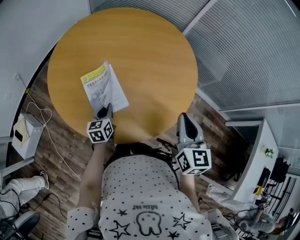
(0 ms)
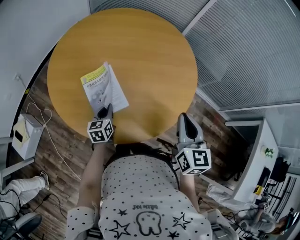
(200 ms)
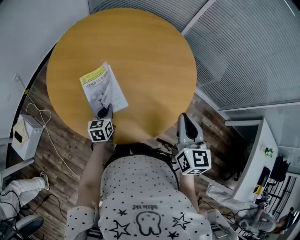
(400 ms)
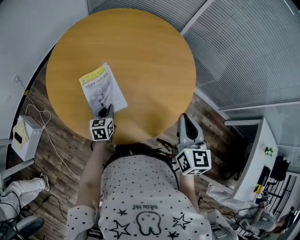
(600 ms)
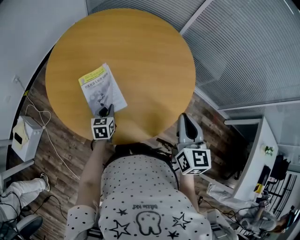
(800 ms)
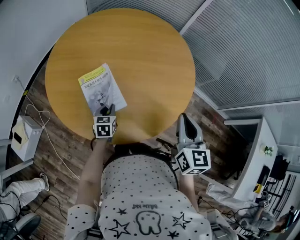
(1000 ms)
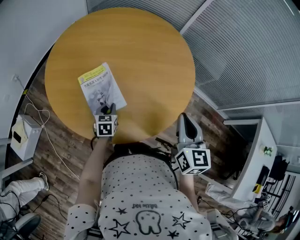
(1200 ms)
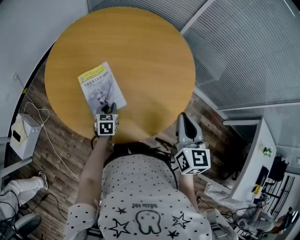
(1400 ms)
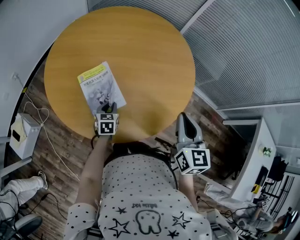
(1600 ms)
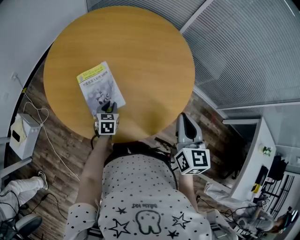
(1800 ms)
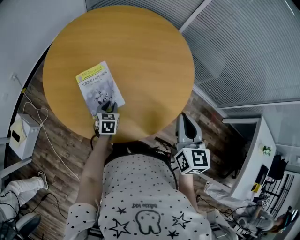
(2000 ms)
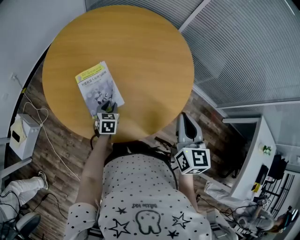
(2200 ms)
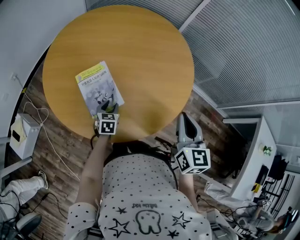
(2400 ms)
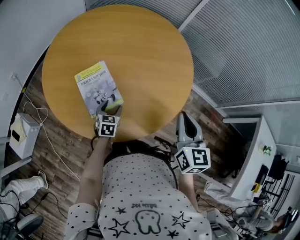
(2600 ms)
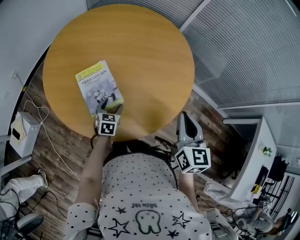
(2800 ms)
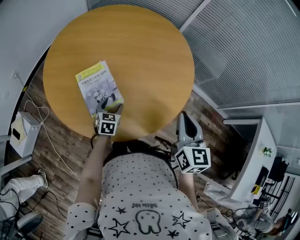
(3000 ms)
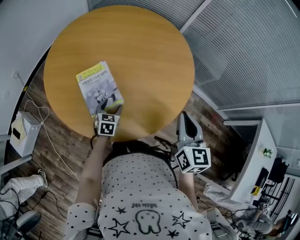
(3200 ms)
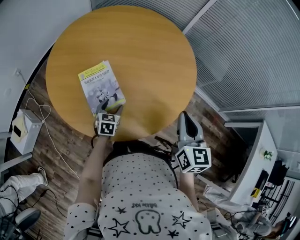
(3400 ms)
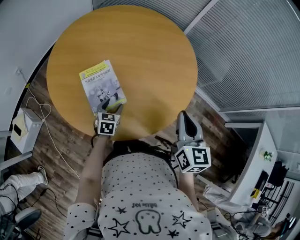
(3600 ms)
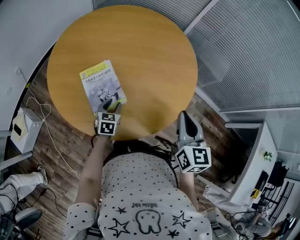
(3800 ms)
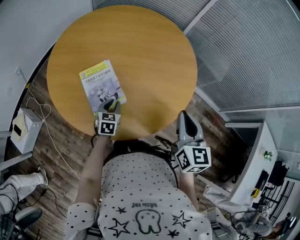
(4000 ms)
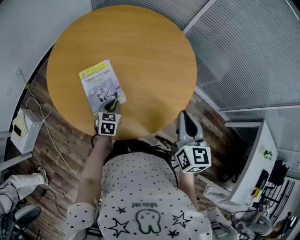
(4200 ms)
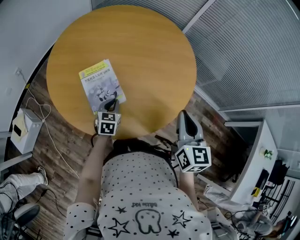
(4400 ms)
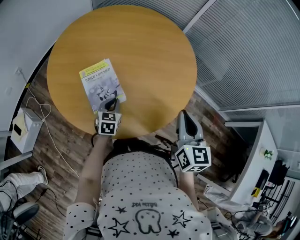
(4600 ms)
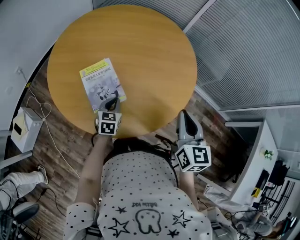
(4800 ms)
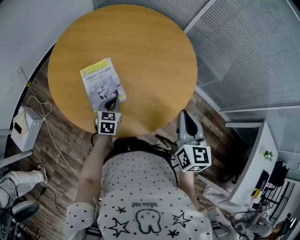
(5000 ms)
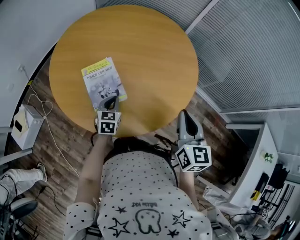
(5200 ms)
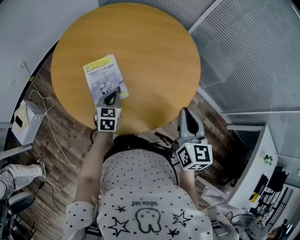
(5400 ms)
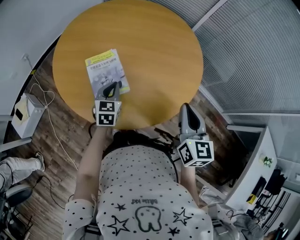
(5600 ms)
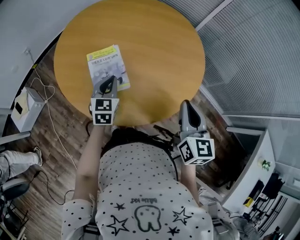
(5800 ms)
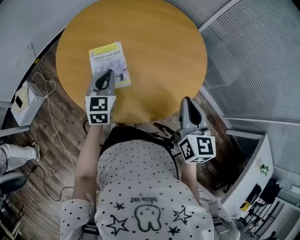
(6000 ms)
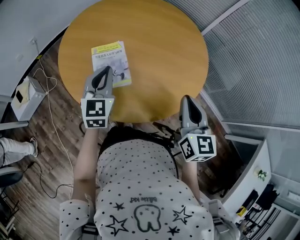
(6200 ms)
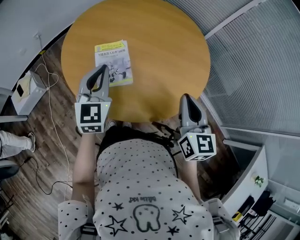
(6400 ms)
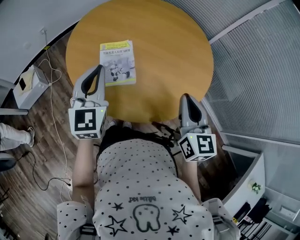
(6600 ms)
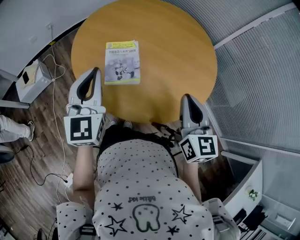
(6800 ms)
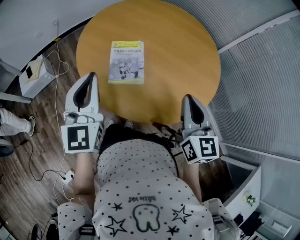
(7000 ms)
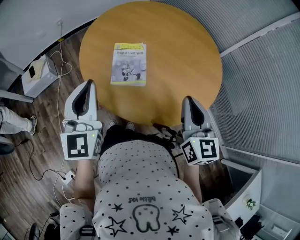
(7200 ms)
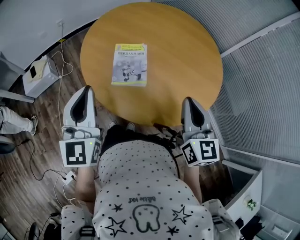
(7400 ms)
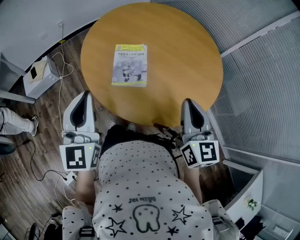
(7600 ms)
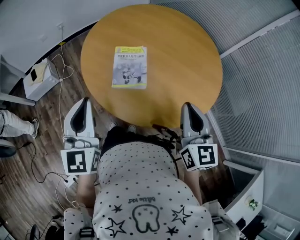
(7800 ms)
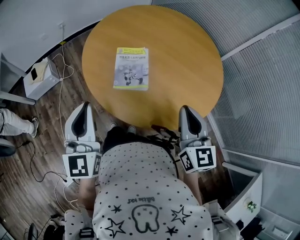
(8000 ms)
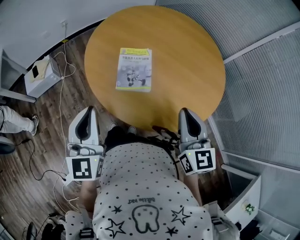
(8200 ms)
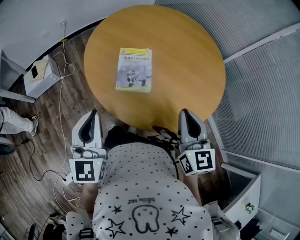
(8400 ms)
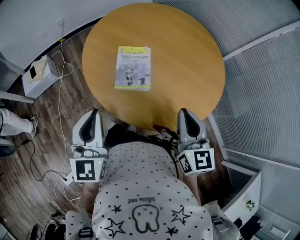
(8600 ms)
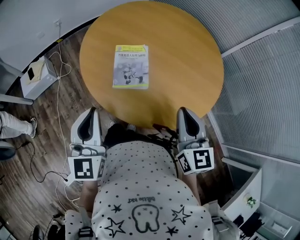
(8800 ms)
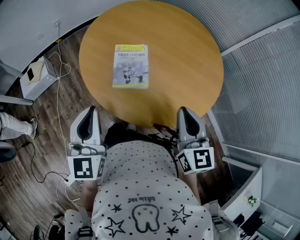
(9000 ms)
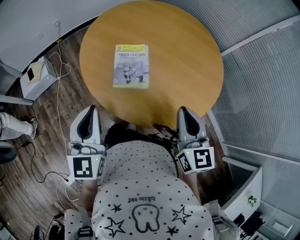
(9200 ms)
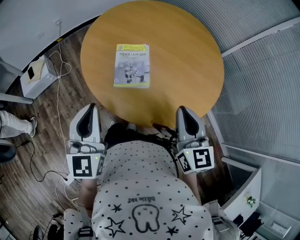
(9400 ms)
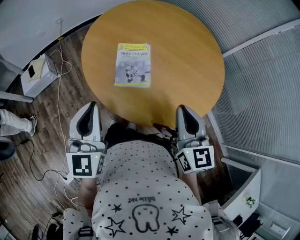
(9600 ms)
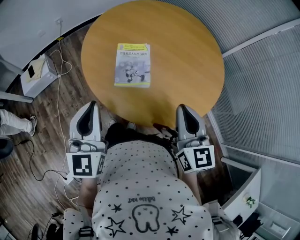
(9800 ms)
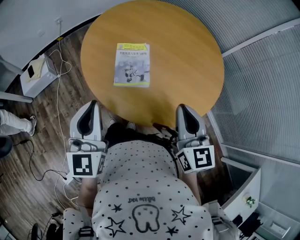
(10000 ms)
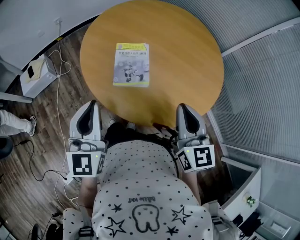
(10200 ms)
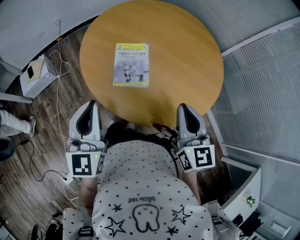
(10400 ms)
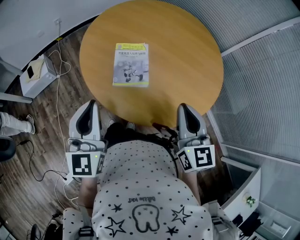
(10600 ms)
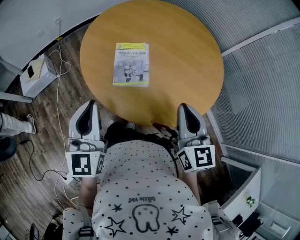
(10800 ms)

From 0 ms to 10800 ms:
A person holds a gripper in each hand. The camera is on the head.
From 0 ms to 1600 ms: The left gripper ends up roughly 5 cm from where it was, and rotates approximately 20 degrees.
From 1600 ms to 3000 ms: The left gripper opens its fingers.
From 3000 ms to 4600 ms: The left gripper closes.
From 4600 ms to 6200 ms: The left gripper heads upward, covering approximately 20 cm, and swivels about 30 degrees.
From 6200 ms to 7800 ms: The left gripper moves backward, to the left and upward, some 20 cm, and turns by approximately 20 degrees, while the right gripper is displaced to the left by approximately 5 cm.
From 7800 ms to 10800 ms: There are only small adjustments of the grippers.

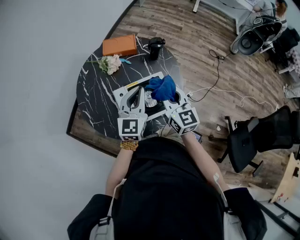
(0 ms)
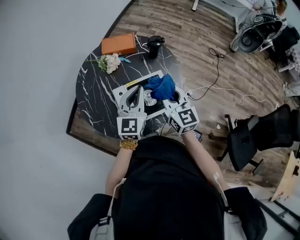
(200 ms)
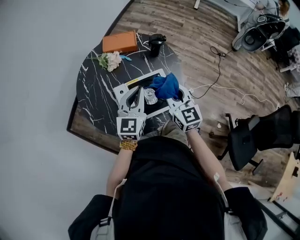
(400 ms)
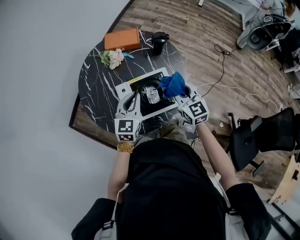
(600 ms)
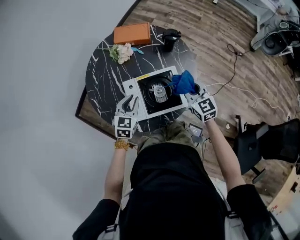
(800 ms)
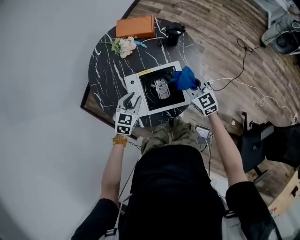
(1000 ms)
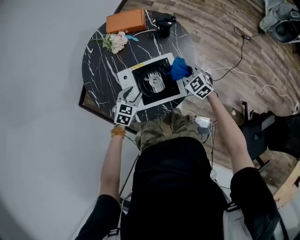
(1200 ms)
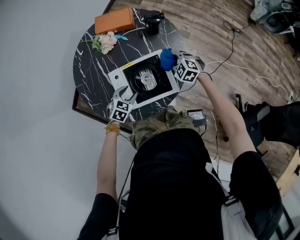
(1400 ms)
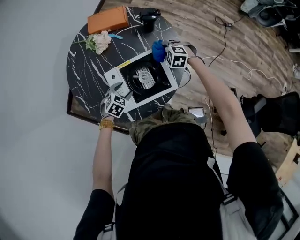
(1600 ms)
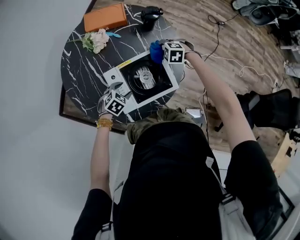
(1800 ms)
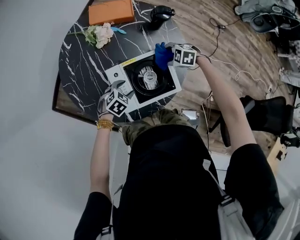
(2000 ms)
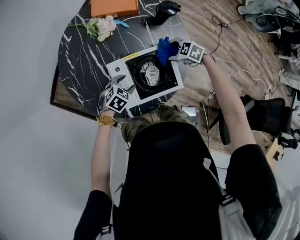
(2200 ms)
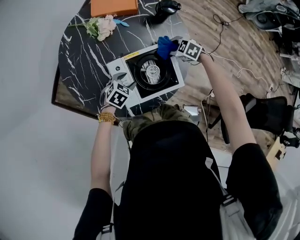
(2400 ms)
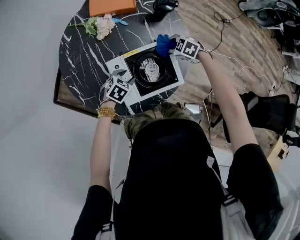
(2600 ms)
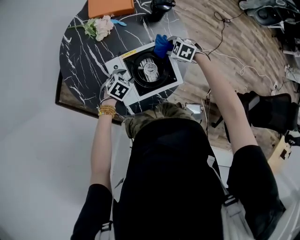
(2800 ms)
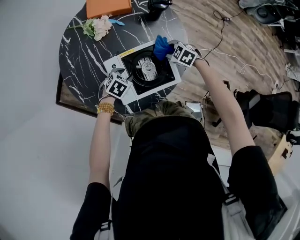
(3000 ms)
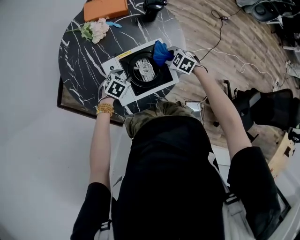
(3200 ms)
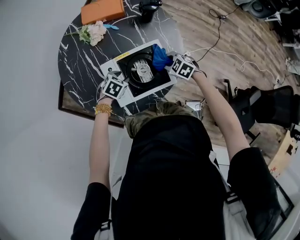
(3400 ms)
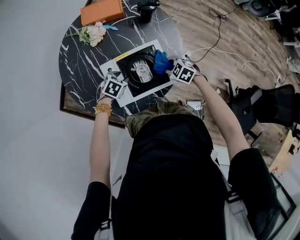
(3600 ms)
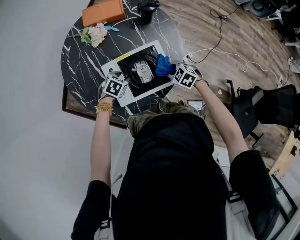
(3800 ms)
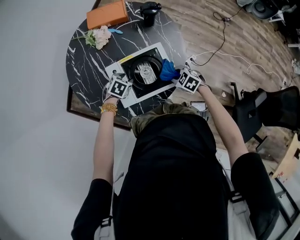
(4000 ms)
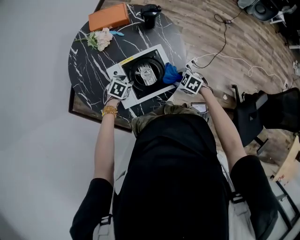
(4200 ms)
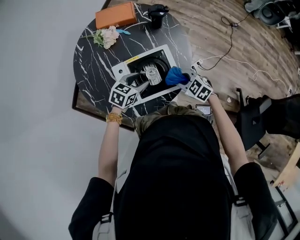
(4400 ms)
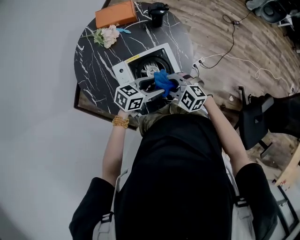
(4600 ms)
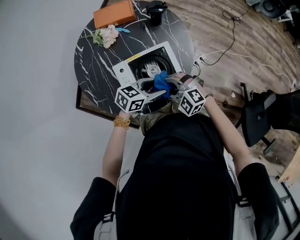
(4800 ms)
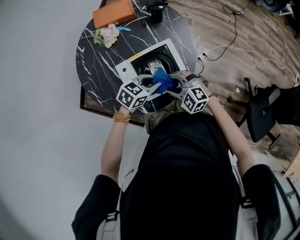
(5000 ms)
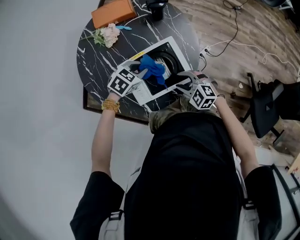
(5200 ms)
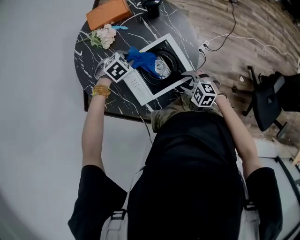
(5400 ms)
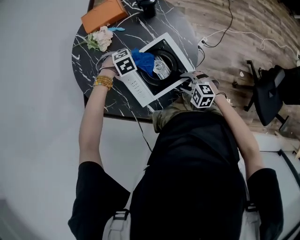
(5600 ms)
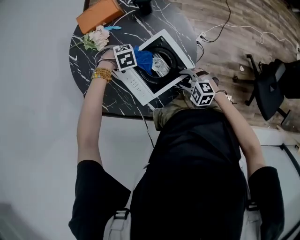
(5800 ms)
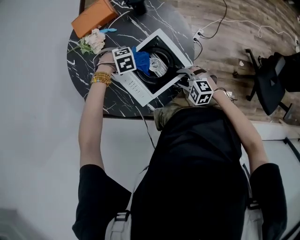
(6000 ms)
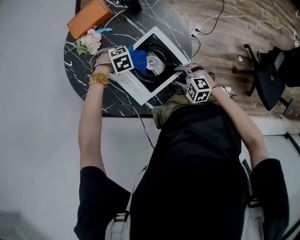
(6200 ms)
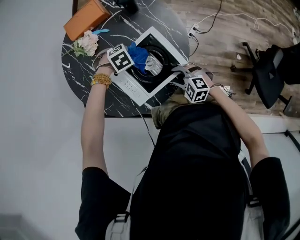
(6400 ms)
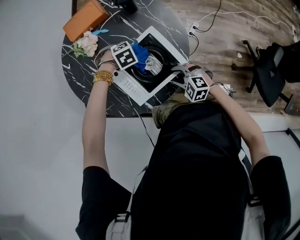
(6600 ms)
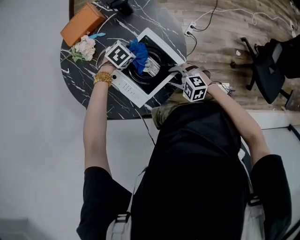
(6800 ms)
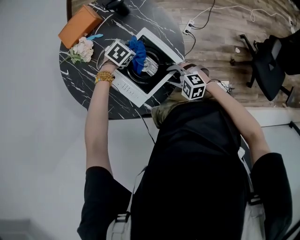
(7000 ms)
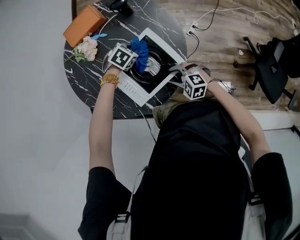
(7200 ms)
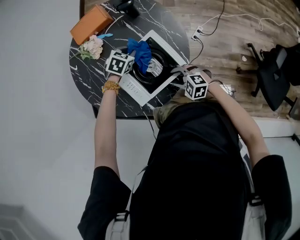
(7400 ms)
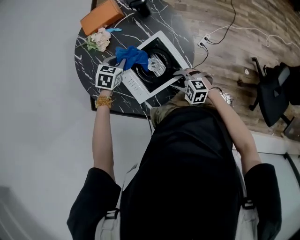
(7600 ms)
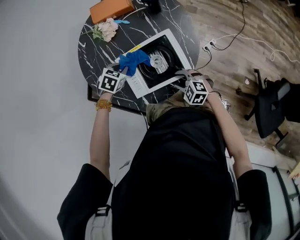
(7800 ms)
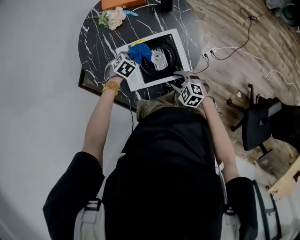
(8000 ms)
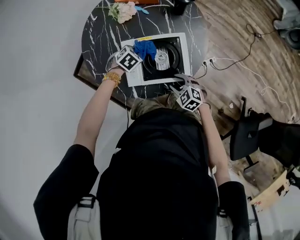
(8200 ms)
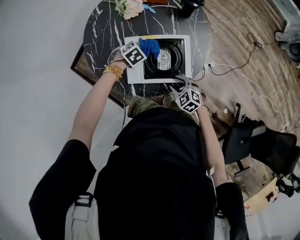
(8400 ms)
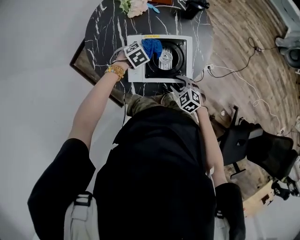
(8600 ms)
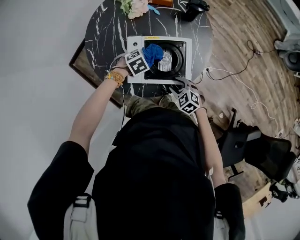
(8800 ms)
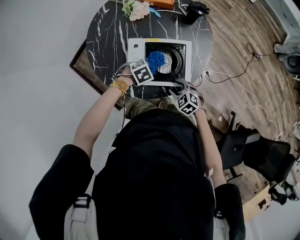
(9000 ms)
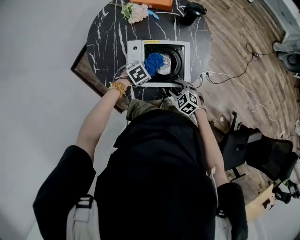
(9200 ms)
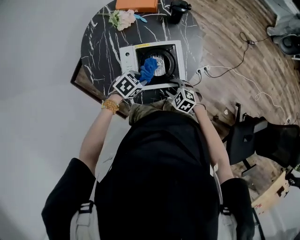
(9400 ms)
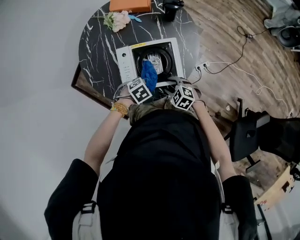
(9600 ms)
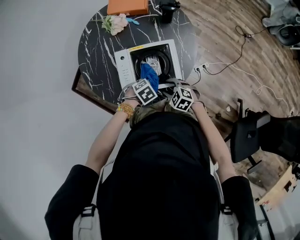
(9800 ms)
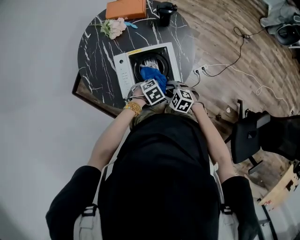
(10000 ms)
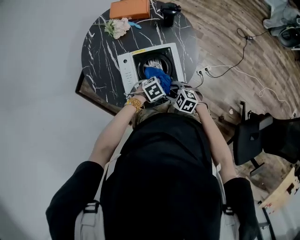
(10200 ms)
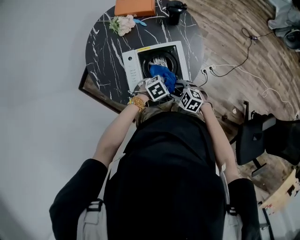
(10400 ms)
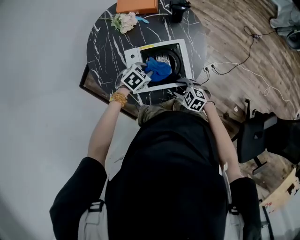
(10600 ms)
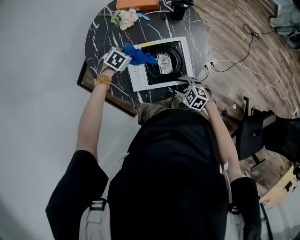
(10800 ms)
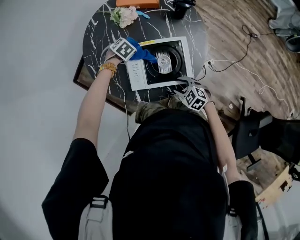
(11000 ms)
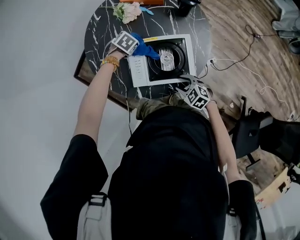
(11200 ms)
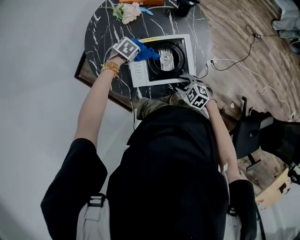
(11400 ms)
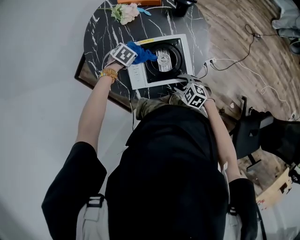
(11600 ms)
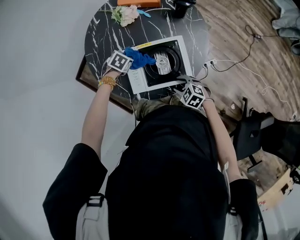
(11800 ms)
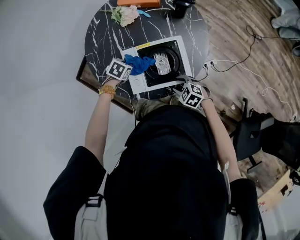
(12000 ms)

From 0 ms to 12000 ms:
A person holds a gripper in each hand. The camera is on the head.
From 0 ms to 1600 ms: The right gripper travels downward and forward by roughly 30 cm, and angles its fingers downward, by approximately 50 degrees. Meanwhile the left gripper shifts some 25 cm downward, points its fingers approximately 50 degrees further downward, and opens up.
From 1600 ms to 3000 ms: The right gripper swivels about 20 degrees, and opens and closes again.
From 3000 ms to 4400 ms: The right gripper ends up approximately 15 cm from where it was, while the left gripper shifts some 10 cm upward, and turns by roughly 20 degrees.
From 4400 ms to 6000 ms: The left gripper shifts by approximately 15 cm, tips its fingers downward by some 40 degrees, and closes its fingers. The right gripper changes place by some 10 cm.
From 6000 ms to 7600 ms: The left gripper moves upward, some 5 cm, and rotates around the line of its fingers by some 50 degrees, counterclockwise from behind.
From 7600 ms to 9000 ms: The left gripper shifts by roughly 15 cm.
From 9000 ms to 10400 ms: The left gripper ends up roughly 10 cm from where it was.
From 10400 ms to 12000 ms: The left gripper moves some 25 cm, and rotates some 30 degrees.

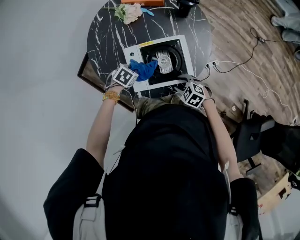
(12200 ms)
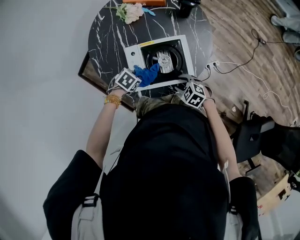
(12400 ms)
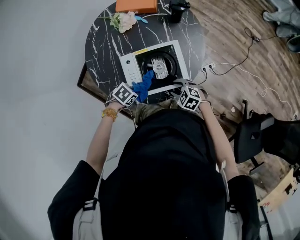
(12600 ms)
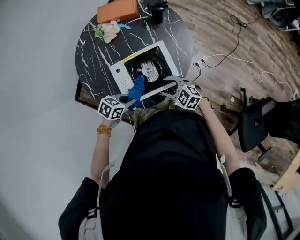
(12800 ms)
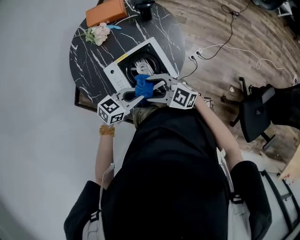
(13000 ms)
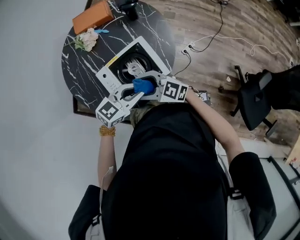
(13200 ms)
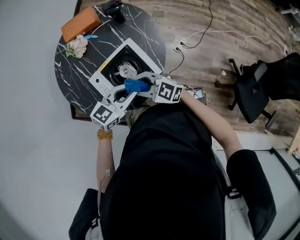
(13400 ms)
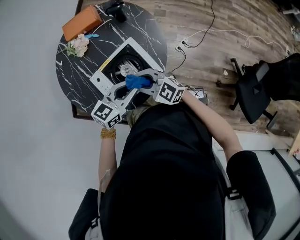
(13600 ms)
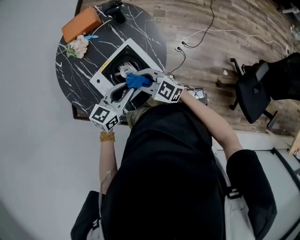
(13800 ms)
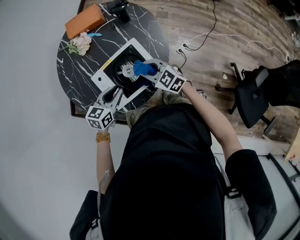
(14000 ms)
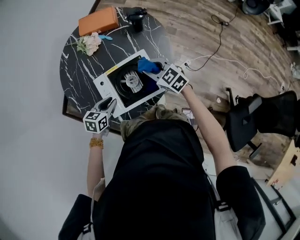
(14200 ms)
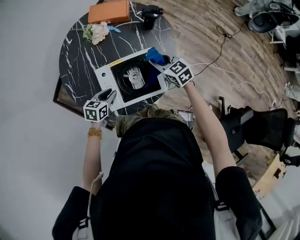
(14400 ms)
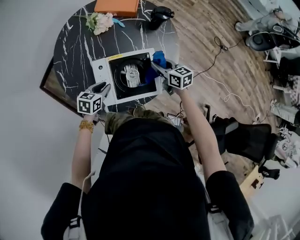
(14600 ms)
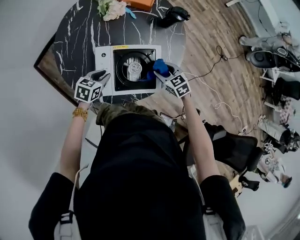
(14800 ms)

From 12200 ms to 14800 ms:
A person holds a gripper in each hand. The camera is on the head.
From 12200 ms to 13400 ms: The right gripper travels upward by some 15 cm, tips its fingers upward by some 40 degrees, and opens and closes again, while the left gripper changes place by some 30 cm, and tips its fingers upward by about 50 degrees.
From 13400 ms to 14800 ms: The right gripper heads downward, covering approximately 15 cm, and tilts its fingers about 30 degrees downward; the left gripper shifts by about 25 cm, and turns by some 50 degrees.
